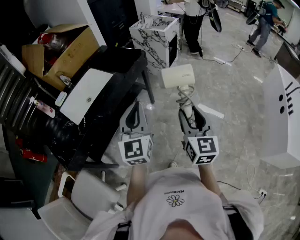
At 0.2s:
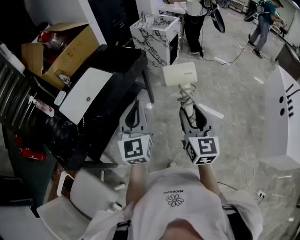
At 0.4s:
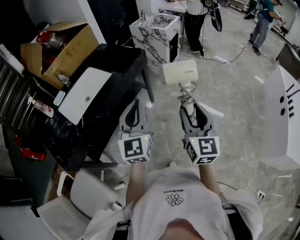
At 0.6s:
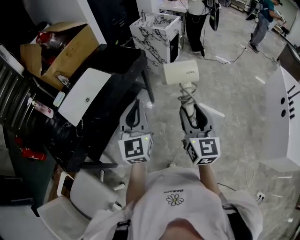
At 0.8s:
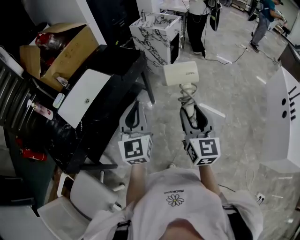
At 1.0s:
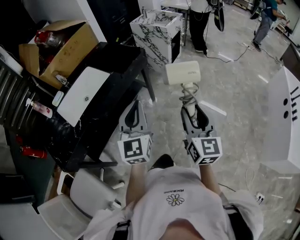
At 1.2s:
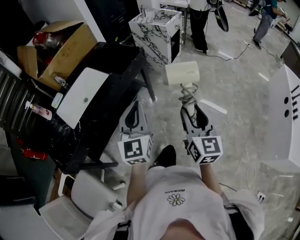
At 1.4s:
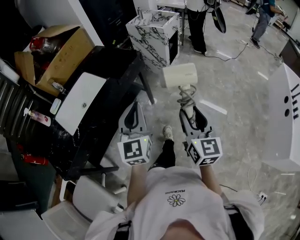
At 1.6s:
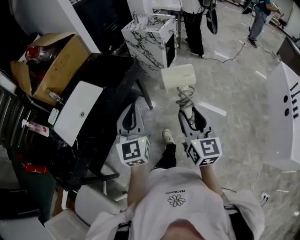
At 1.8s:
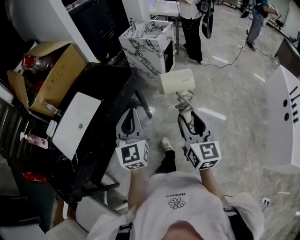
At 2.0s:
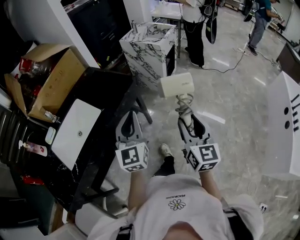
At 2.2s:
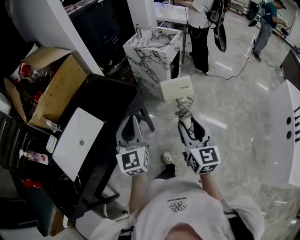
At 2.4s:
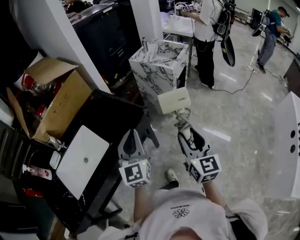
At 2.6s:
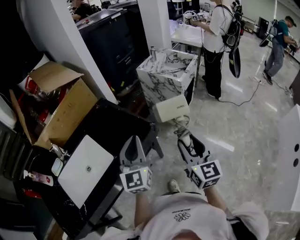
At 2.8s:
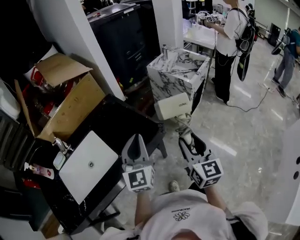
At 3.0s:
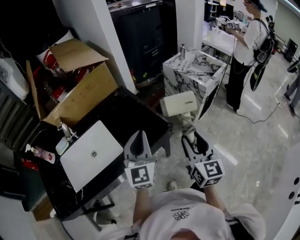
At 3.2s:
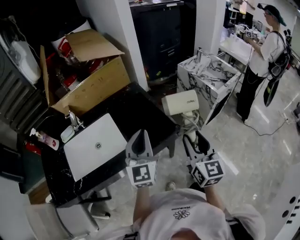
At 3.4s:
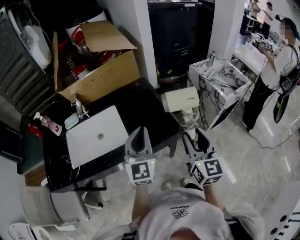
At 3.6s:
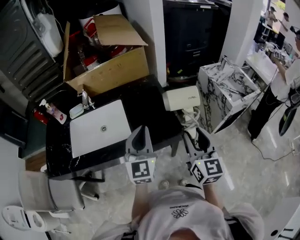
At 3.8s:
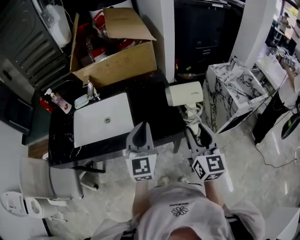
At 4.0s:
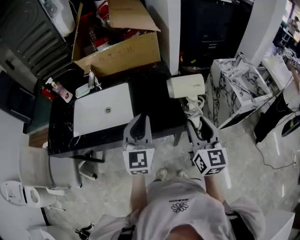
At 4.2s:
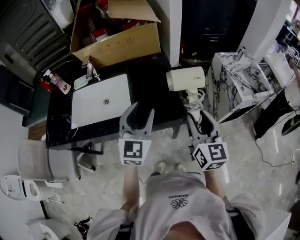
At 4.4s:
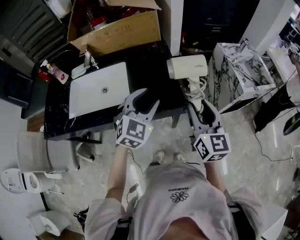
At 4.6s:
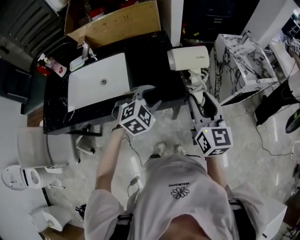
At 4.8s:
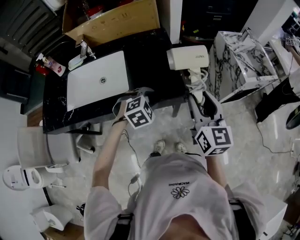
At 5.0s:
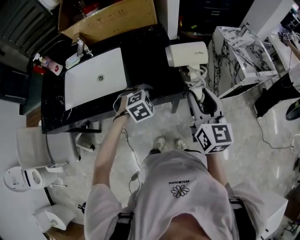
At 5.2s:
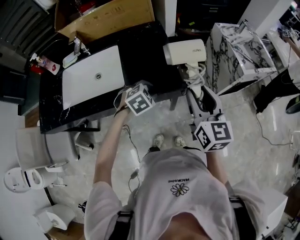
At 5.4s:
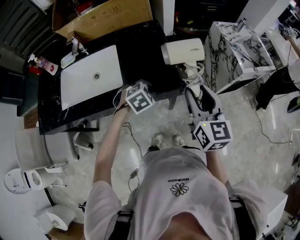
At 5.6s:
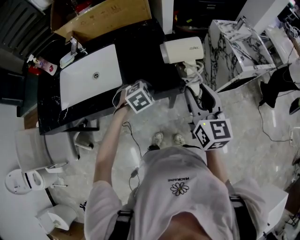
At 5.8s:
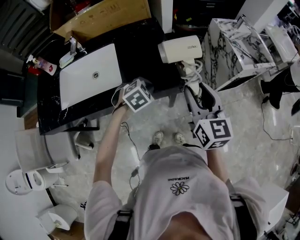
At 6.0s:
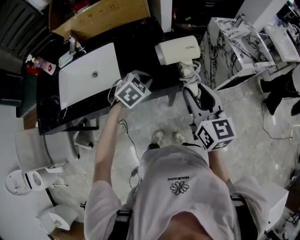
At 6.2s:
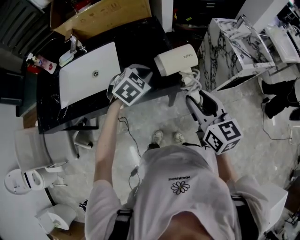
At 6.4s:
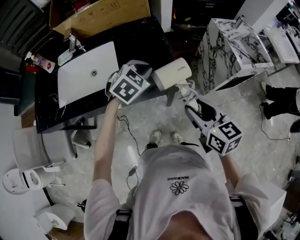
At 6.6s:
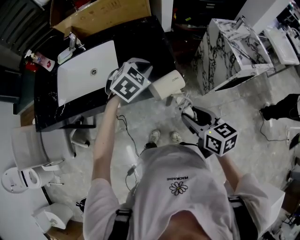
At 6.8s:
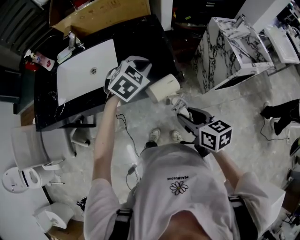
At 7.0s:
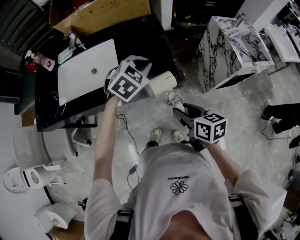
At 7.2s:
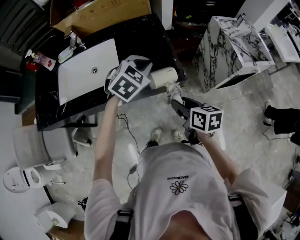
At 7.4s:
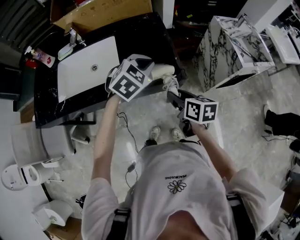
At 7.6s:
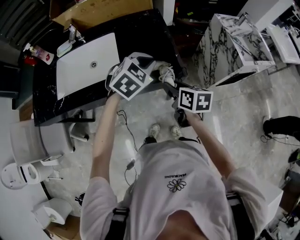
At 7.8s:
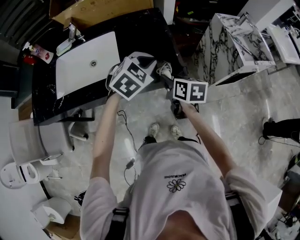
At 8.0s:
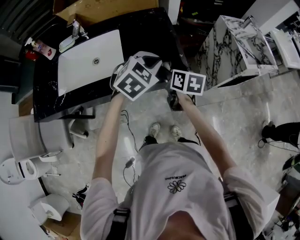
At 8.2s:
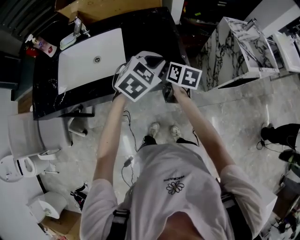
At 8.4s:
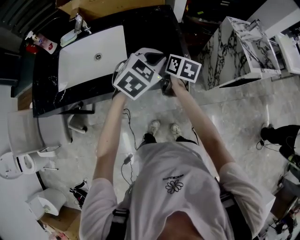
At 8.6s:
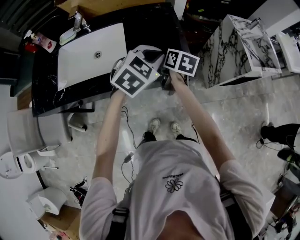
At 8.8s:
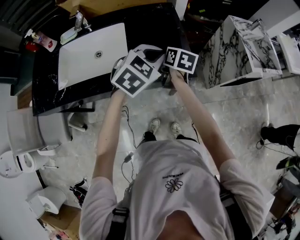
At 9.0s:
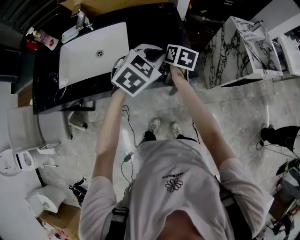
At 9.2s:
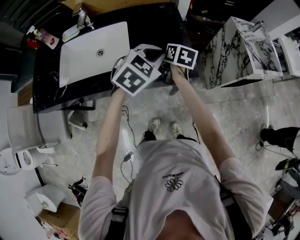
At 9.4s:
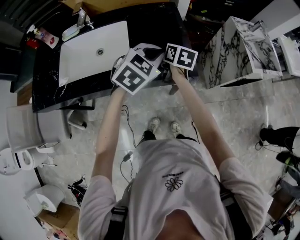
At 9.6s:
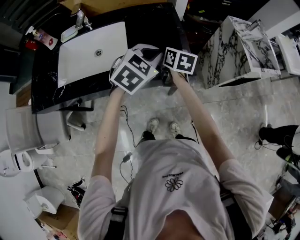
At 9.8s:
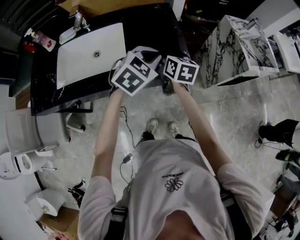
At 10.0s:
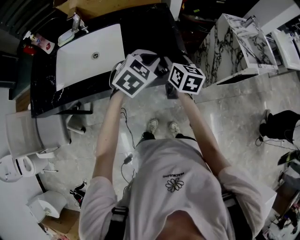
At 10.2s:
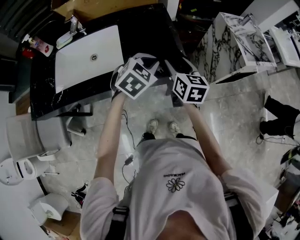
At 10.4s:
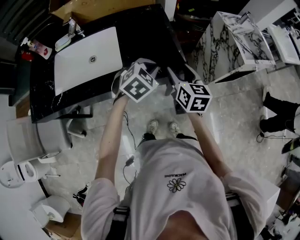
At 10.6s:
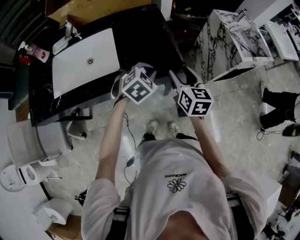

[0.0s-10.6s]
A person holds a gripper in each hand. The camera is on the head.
0.0s to 1.6s: The two grippers go approximately 15 cm forward.
1.6s to 3.0s: The grippers both shift forward by approximately 40 cm. The right gripper rotates some 20 degrees.
3.0s to 4.6s: The left gripper goes some 10 cm downward, tilts its fingers about 50 degrees downward, and opens up. The right gripper moves roughly 10 cm, and changes its angle by about 30 degrees.
4.6s to 6.0s: The left gripper closes up.
6.0s to 7.6s: The left gripper heads upward, covering roughly 5 cm. The right gripper moves downward and to the left, some 15 cm, and changes its angle by approximately 40 degrees.
7.6s to 9.0s: The right gripper shifts approximately 20 cm forward and to the left.
9.0s to 10.6s: The right gripper moves backward and to the right, about 15 cm, and turns by some 20 degrees. The left gripper goes roughly 10 cm downward.

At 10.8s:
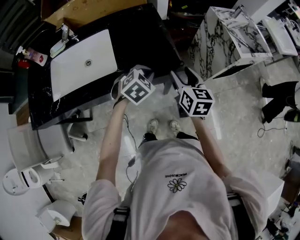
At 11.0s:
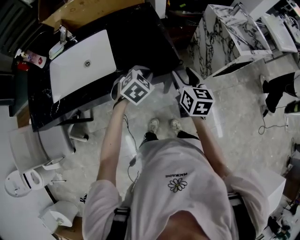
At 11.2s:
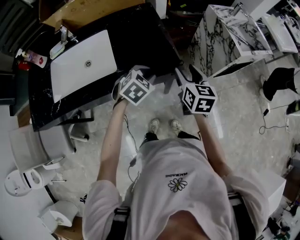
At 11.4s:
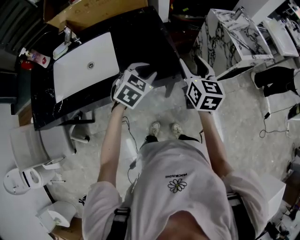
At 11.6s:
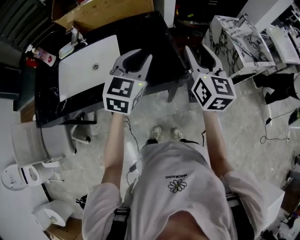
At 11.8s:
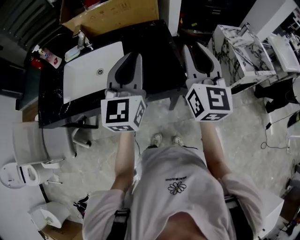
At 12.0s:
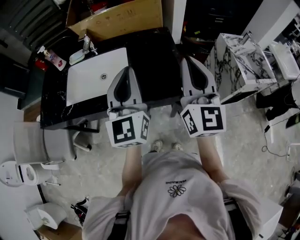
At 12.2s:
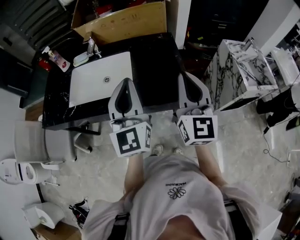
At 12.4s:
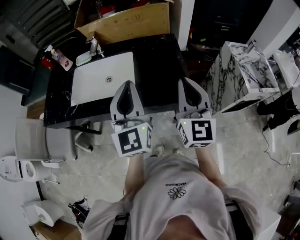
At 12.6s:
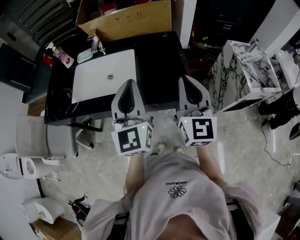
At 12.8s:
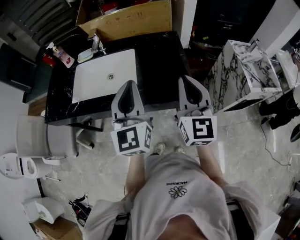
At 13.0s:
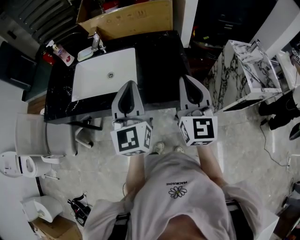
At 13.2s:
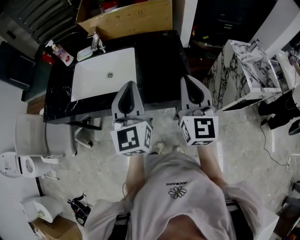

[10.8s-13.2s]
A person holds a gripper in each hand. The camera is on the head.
10.8s to 12.0s: The two grippers go about 25 cm upward. The left gripper angles its fingers upward, by roughly 60 degrees, and opens, then closes once more. Meanwhile the right gripper tilts its fingers about 40 degrees upward, and closes up.
12.0s to 13.2s: The right gripper heads downward, covering roughly 5 cm.

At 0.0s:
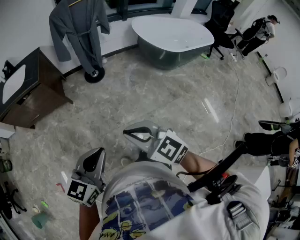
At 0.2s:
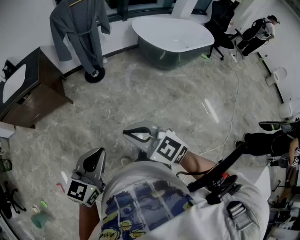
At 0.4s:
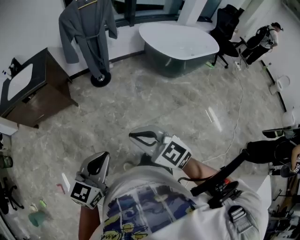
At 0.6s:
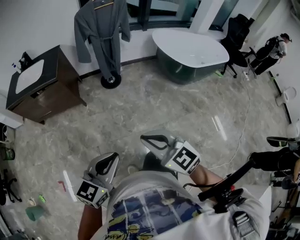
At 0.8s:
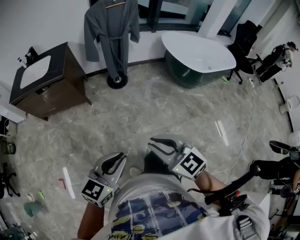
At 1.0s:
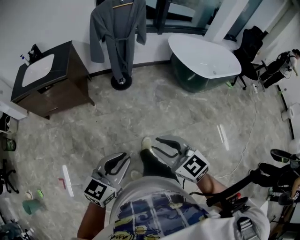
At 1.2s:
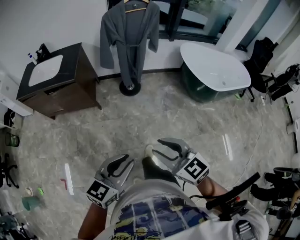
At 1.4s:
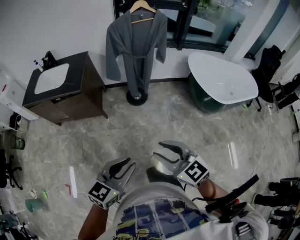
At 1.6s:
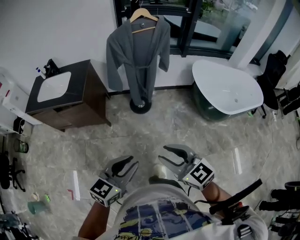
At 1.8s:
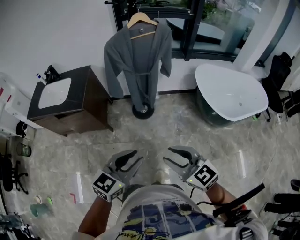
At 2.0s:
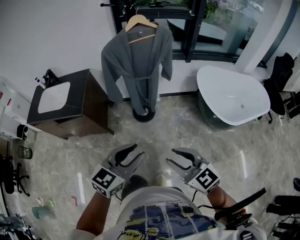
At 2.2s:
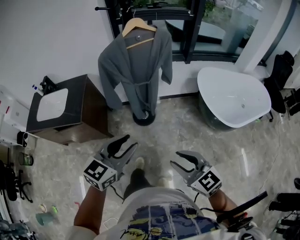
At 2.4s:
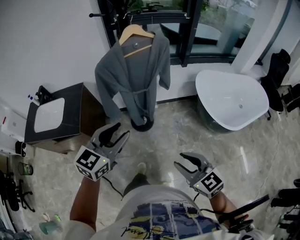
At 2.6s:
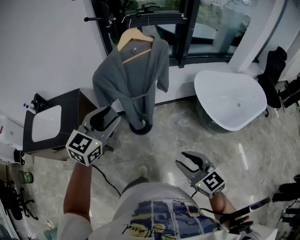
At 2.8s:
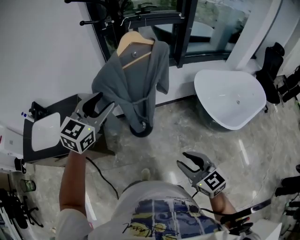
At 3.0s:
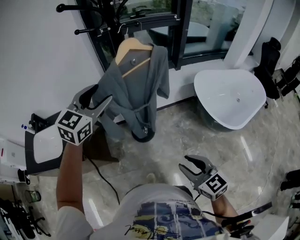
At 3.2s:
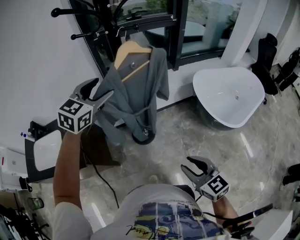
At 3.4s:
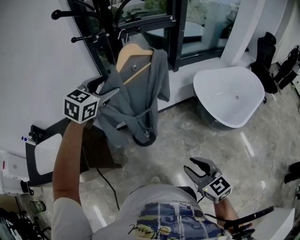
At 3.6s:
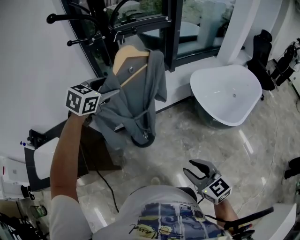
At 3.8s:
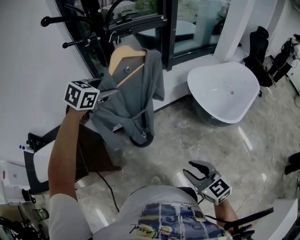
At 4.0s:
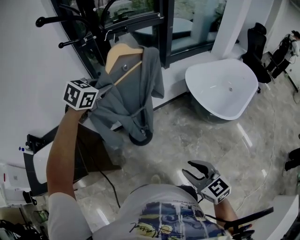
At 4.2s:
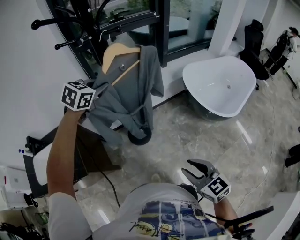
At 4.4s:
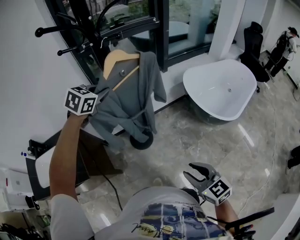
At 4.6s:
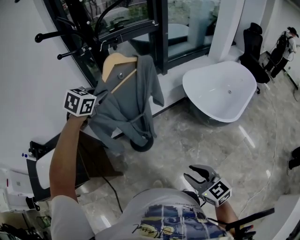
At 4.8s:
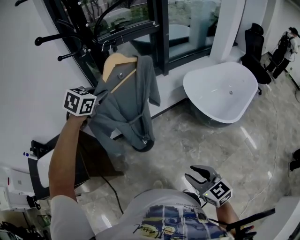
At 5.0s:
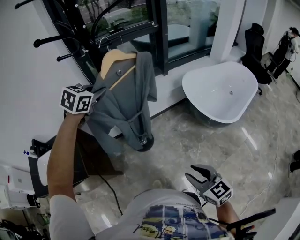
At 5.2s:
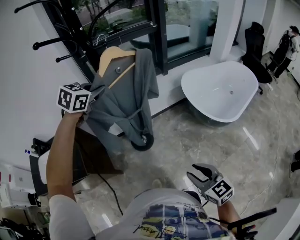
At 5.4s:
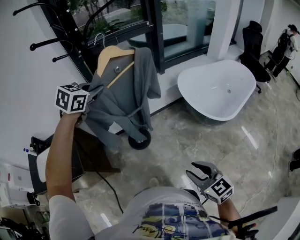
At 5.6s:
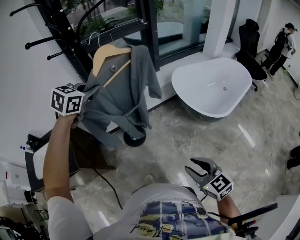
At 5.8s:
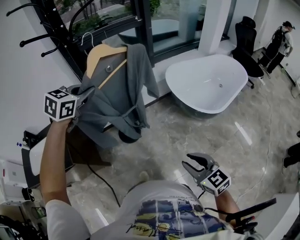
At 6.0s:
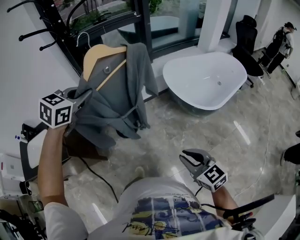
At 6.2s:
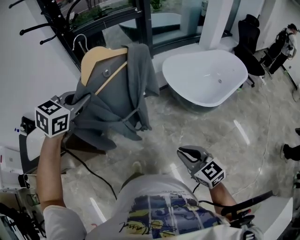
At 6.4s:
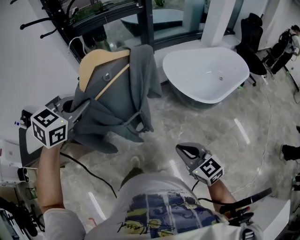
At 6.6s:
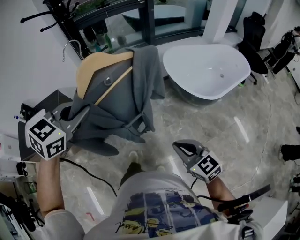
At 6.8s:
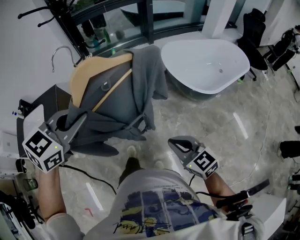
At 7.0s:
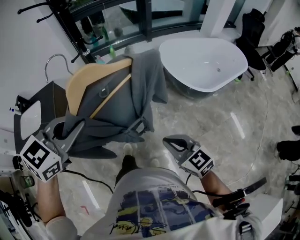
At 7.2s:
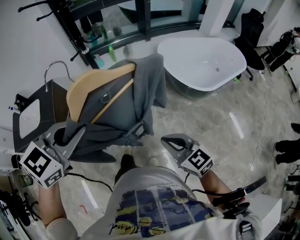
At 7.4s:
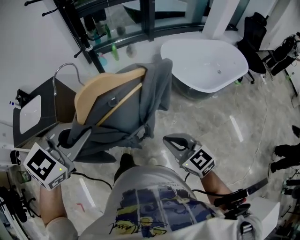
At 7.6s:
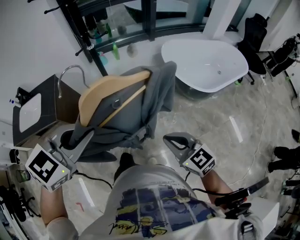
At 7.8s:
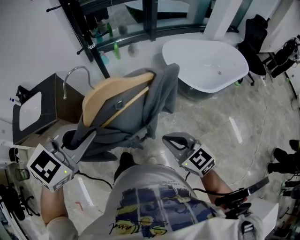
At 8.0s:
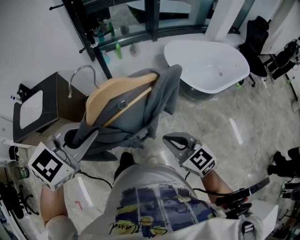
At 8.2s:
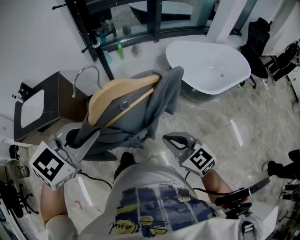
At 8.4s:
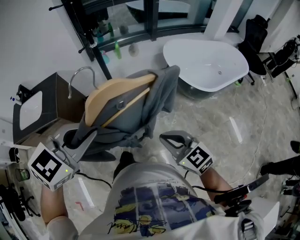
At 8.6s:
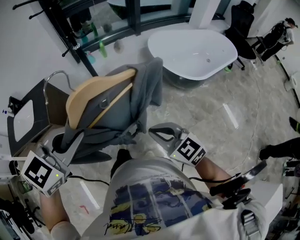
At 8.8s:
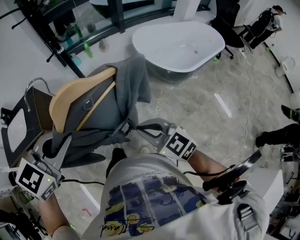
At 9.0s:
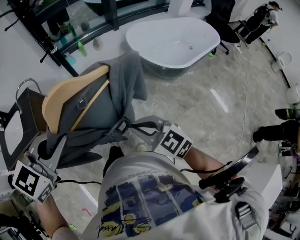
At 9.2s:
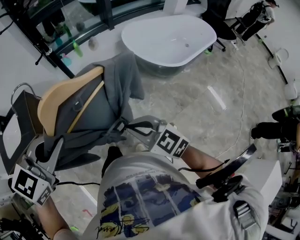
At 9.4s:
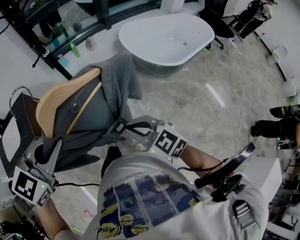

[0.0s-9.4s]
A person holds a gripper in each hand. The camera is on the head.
0.0s to 1.6s: The grippers both shift forward by approximately 25 cm. The right gripper opens.
1.6s to 3.2s: The left gripper shifts some 60 cm forward, swivels roughly 30 degrees, and opens up, while the right gripper heads forward, covering approximately 25 cm, and rotates some 30 degrees.
3.2s to 4.8s: The left gripper heads forward, covering about 5 cm, turns by roughly 20 degrees, and closes up; the right gripper moves approximately 5 cm.
4.8s to 6.2s: The right gripper heads to the right, covering about 15 cm, and closes its fingers. Meanwhile the left gripper goes about 25 cm backward and to the right.
6.2s to 7.8s: The left gripper goes some 25 cm backward. Meanwhile the right gripper moves backward, some 5 cm.
7.8s to 9.4s: There are only small adjustments of the grippers.

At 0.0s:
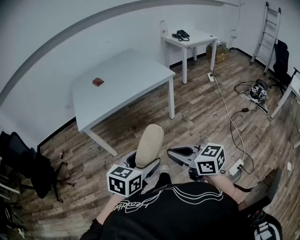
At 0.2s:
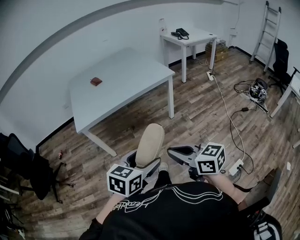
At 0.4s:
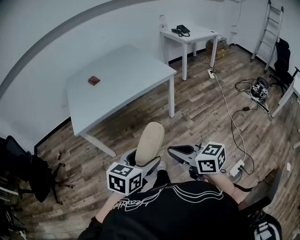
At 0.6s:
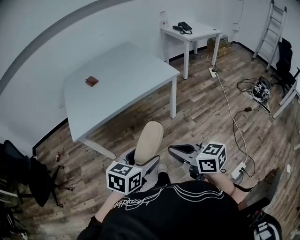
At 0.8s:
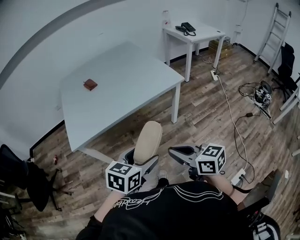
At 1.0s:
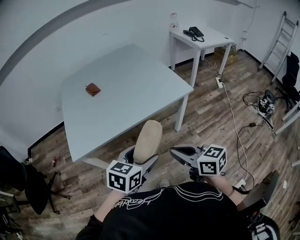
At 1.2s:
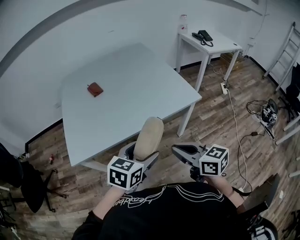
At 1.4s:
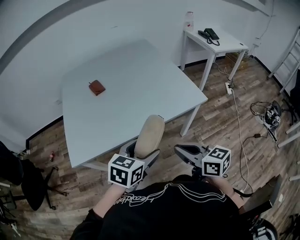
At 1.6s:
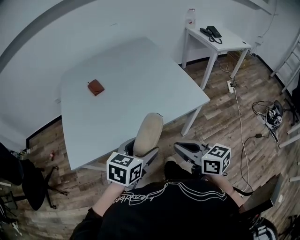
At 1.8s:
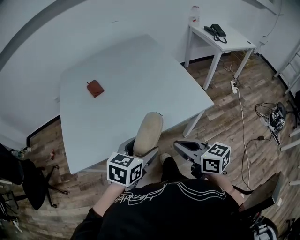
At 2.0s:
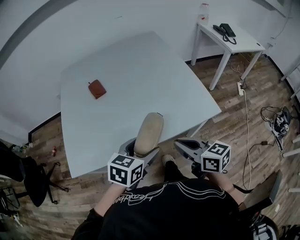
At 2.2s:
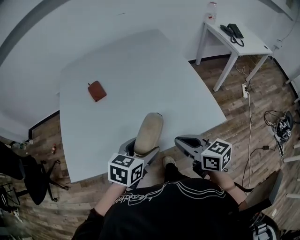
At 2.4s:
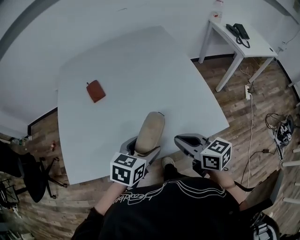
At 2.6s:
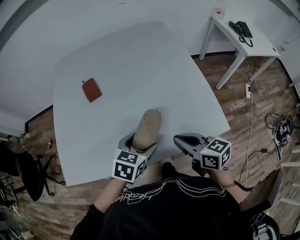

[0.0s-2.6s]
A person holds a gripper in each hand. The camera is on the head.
0.0s to 1.2s: Both grippers are carried forward, about 40 cm.
1.2s to 2.6s: Both grippers travel together forward, some 30 cm.
